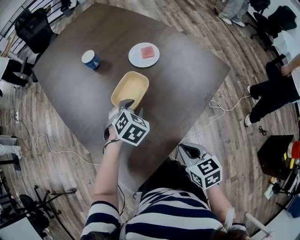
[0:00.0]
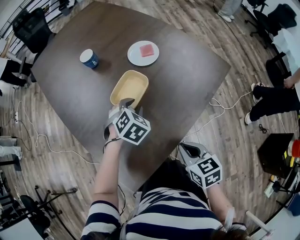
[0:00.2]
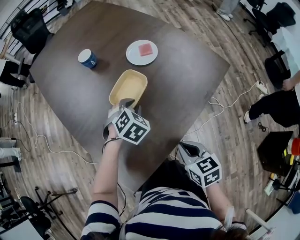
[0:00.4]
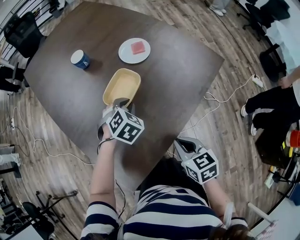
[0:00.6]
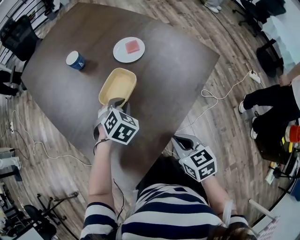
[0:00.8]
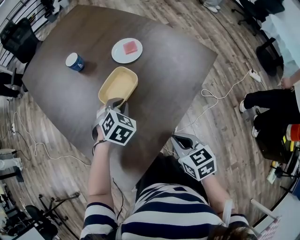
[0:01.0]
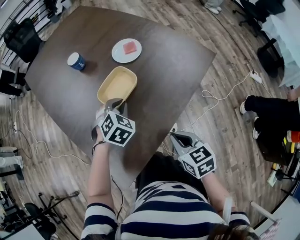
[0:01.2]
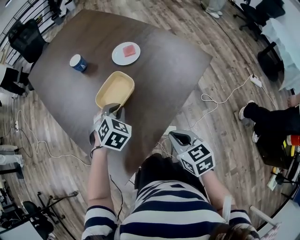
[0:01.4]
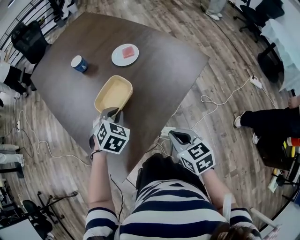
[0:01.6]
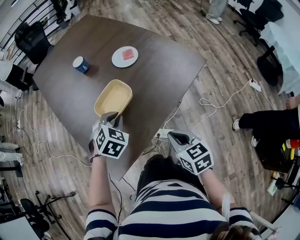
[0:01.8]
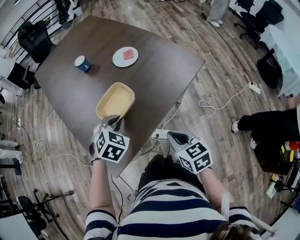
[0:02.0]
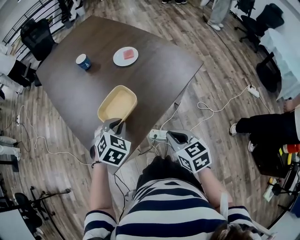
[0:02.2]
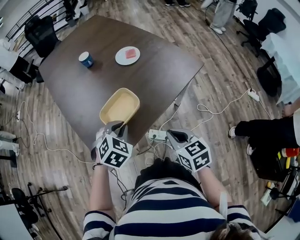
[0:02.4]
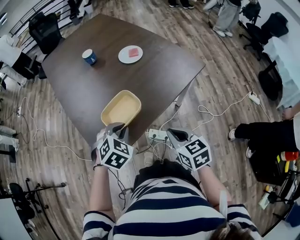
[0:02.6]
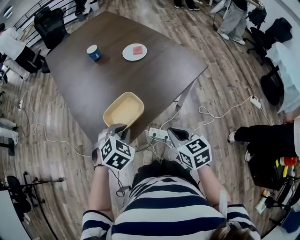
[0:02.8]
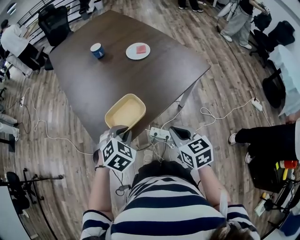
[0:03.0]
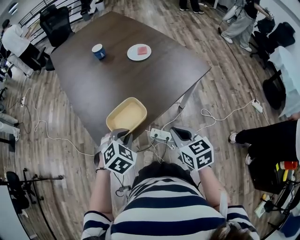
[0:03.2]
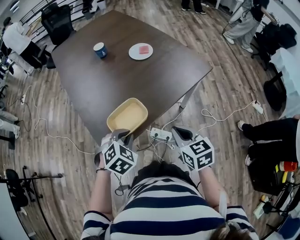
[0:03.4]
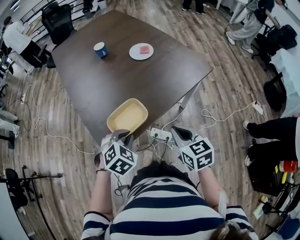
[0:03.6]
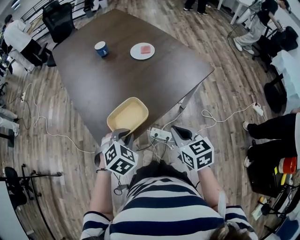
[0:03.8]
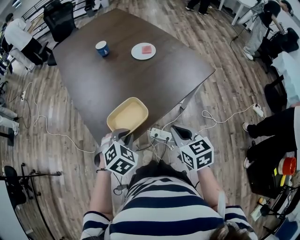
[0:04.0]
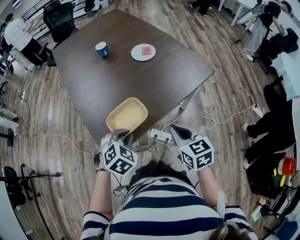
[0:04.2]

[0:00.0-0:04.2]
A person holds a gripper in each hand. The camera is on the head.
0:00.0 to 0:01.4: The left gripper changes place by approximately 5 cm.
0:01.4 to 0:02.8: The right gripper travels backward by some 10 cm. Meanwhile the left gripper heads backward, covering roughly 20 cm.
0:02.8 to 0:04.2: The grippers stay close to where they were, moving slightly.

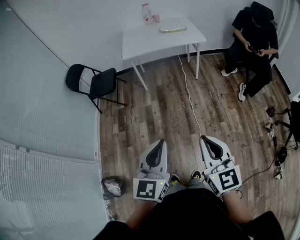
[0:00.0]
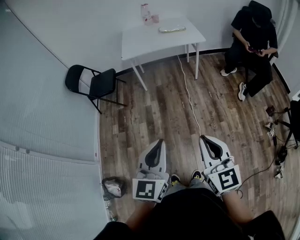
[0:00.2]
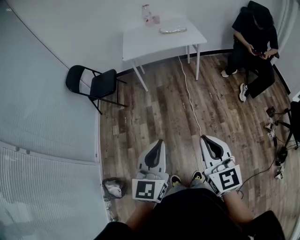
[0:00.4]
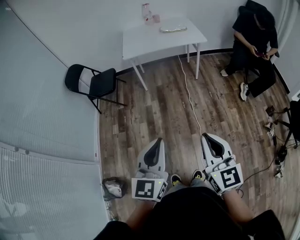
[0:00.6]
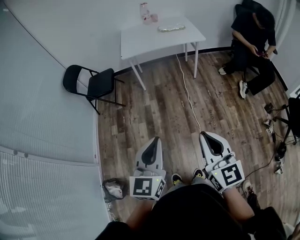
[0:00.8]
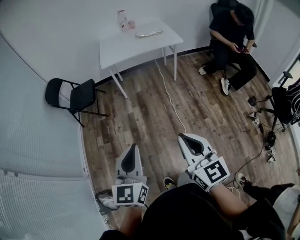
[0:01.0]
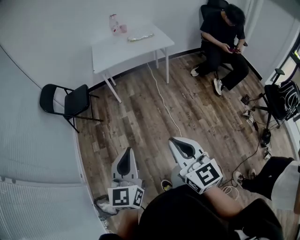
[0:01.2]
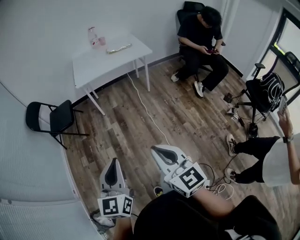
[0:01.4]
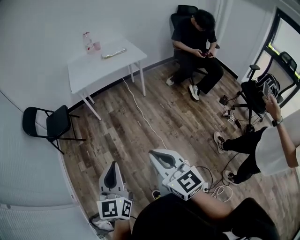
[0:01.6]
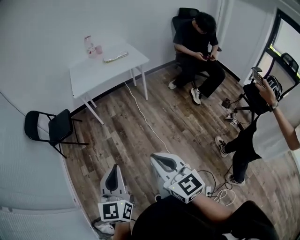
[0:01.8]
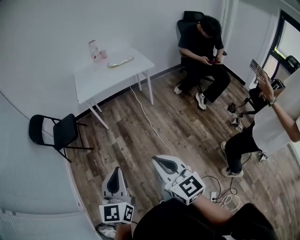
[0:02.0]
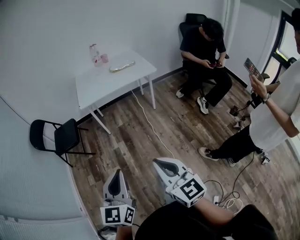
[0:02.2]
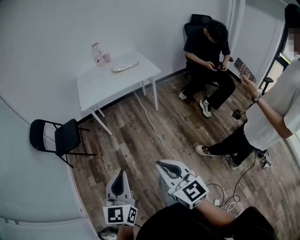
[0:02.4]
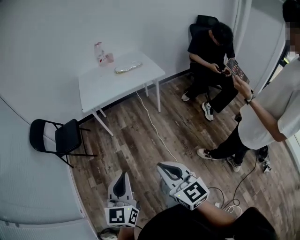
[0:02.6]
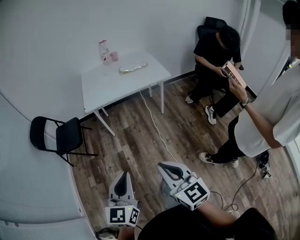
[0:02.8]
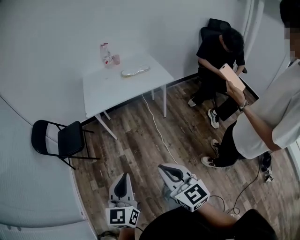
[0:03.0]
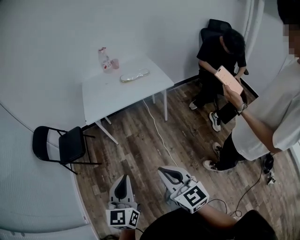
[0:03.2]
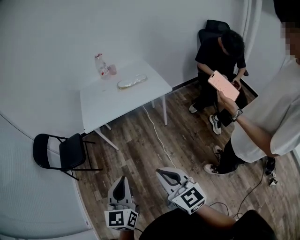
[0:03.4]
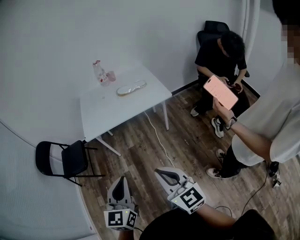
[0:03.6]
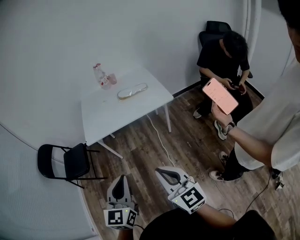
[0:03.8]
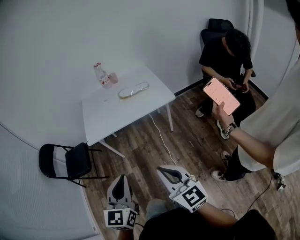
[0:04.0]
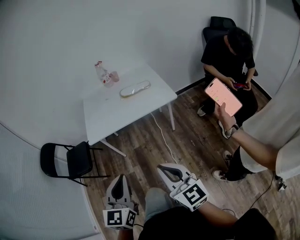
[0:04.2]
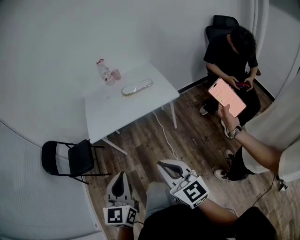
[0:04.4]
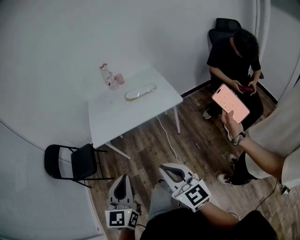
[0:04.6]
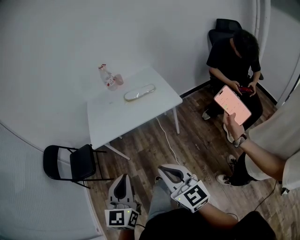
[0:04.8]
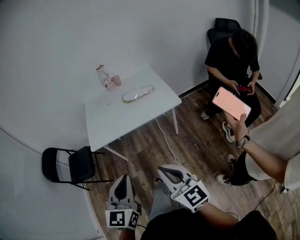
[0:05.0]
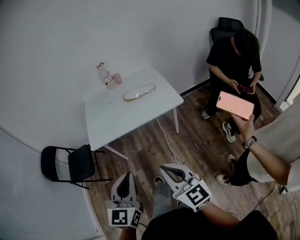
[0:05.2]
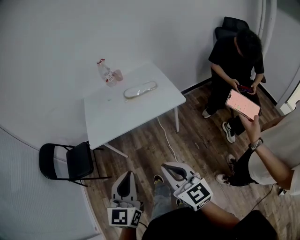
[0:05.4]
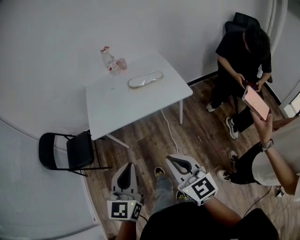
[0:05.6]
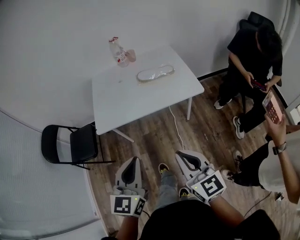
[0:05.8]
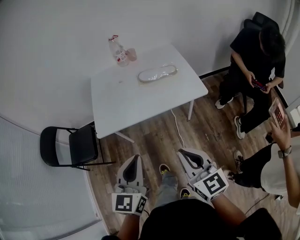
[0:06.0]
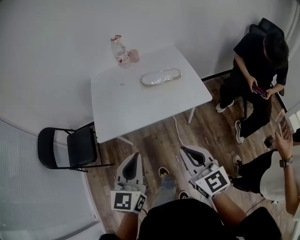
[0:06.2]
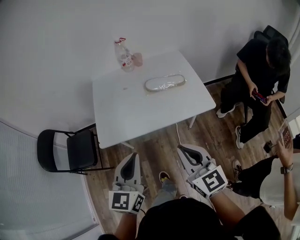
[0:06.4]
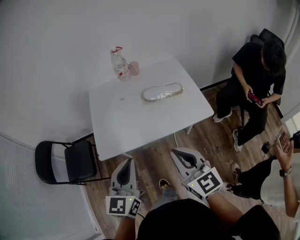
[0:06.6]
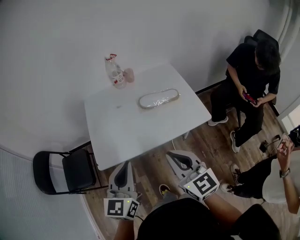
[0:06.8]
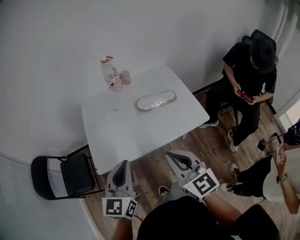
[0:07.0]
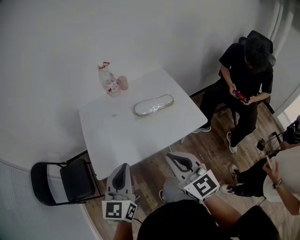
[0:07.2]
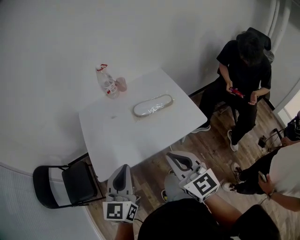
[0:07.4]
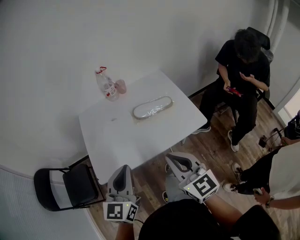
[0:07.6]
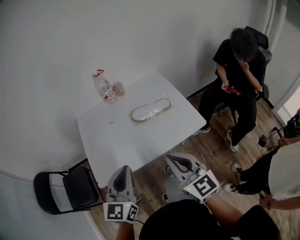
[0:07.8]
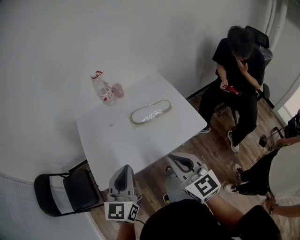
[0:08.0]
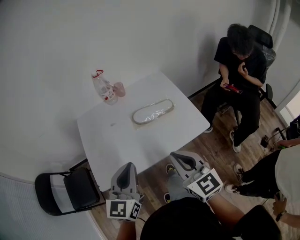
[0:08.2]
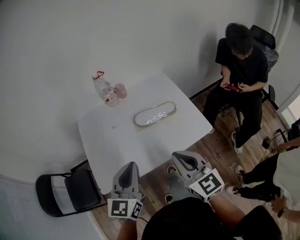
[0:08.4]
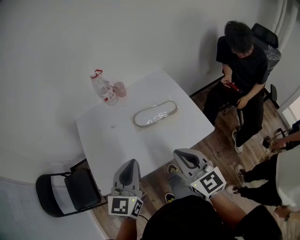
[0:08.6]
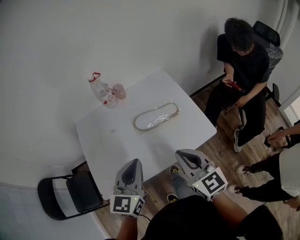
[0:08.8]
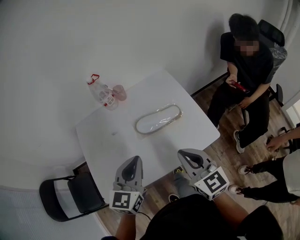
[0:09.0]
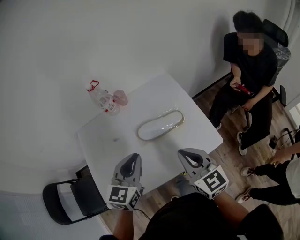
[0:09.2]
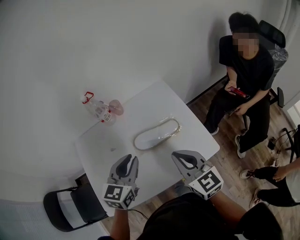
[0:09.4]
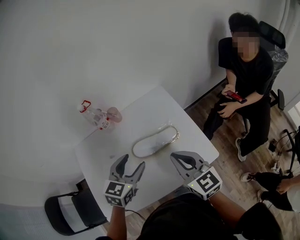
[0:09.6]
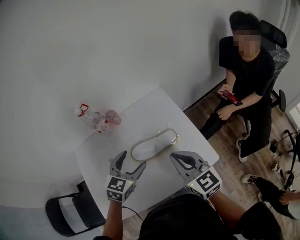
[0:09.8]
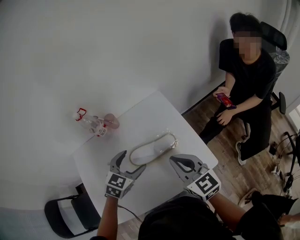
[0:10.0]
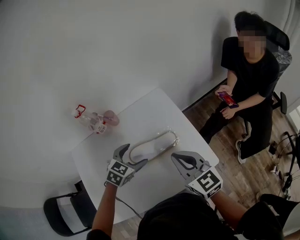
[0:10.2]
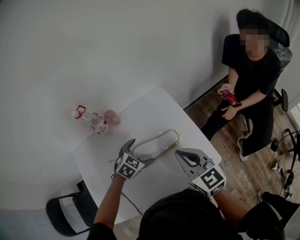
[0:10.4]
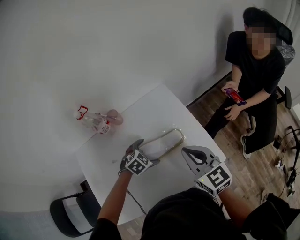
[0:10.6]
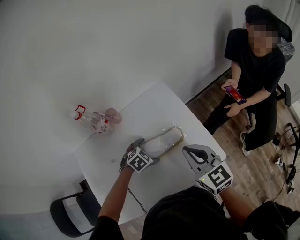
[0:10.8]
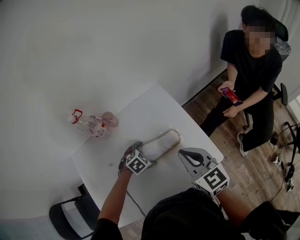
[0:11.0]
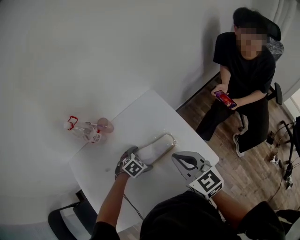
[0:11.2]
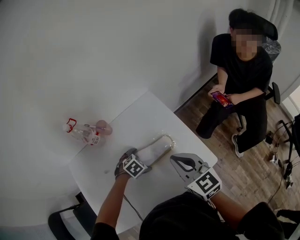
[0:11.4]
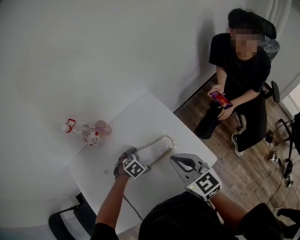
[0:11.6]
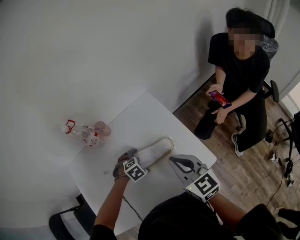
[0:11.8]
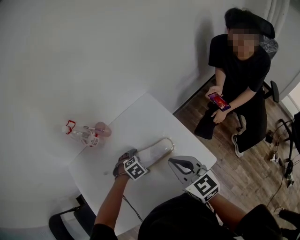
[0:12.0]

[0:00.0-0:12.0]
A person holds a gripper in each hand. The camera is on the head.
0:00.0 to 0:01.6: Both grippers travel together to the left, approximately 10 cm.
0:01.6 to 0:03.0: Both grippers move forward, about 25 cm.
0:03.0 to 0:04.4: The two grippers go some 20 cm forward and to the right.
0:04.4 to 0:06.0: Both grippers move forward, about 20 cm.
0:06.0 to 0:07.6: The two grippers go about 20 cm forward.
0:07.6 to 0:09.0: The grippers both shift forward by some 20 cm.
0:09.0 to 0:10.4: The right gripper goes some 15 cm forward, while the left gripper shifts roughly 30 cm forward and downward, angles its fingers downward, by some 40 degrees, and opens its fingers.
0:10.4 to 0:12.0: The left gripper is displaced downward by some 10 cm, and swivels approximately 30 degrees.

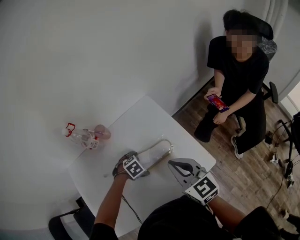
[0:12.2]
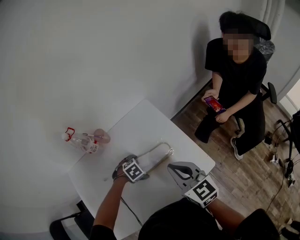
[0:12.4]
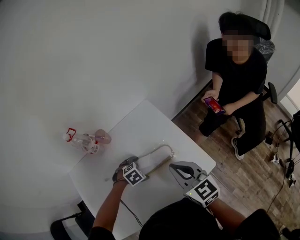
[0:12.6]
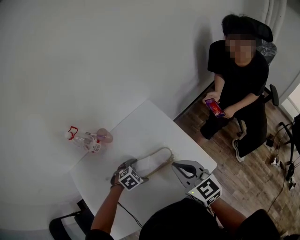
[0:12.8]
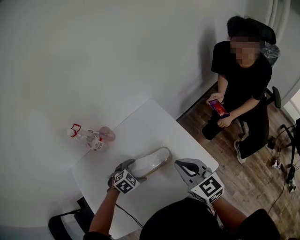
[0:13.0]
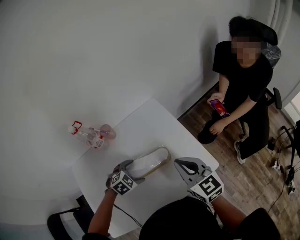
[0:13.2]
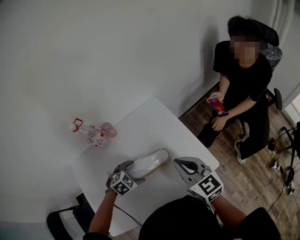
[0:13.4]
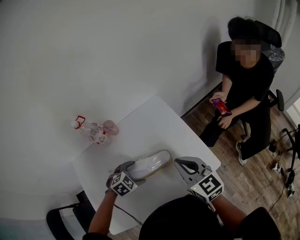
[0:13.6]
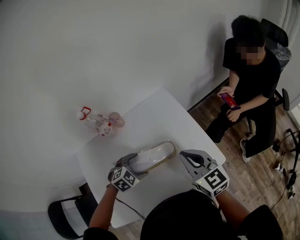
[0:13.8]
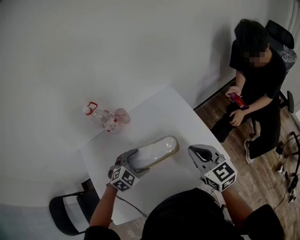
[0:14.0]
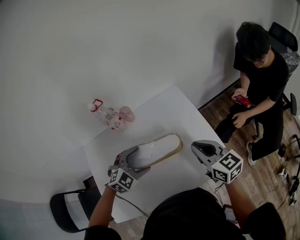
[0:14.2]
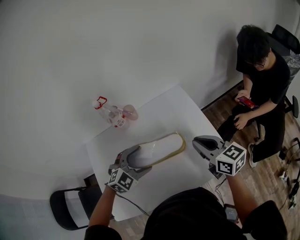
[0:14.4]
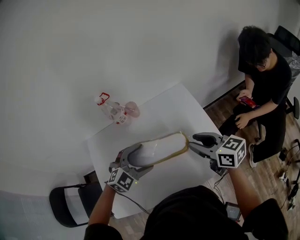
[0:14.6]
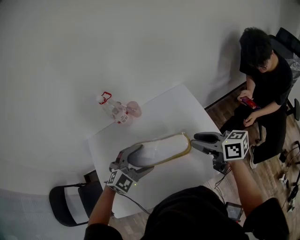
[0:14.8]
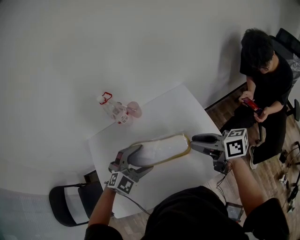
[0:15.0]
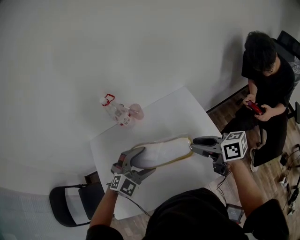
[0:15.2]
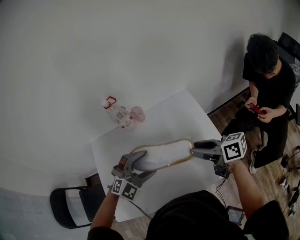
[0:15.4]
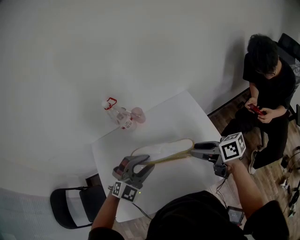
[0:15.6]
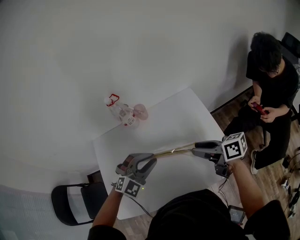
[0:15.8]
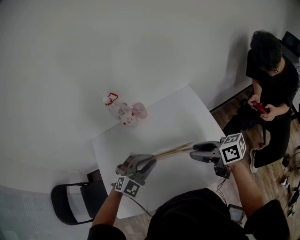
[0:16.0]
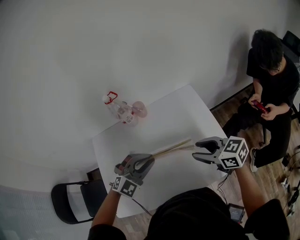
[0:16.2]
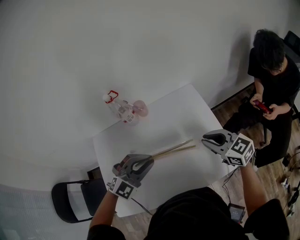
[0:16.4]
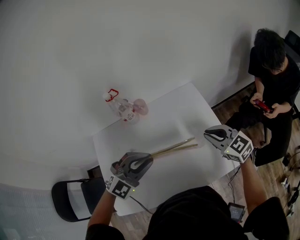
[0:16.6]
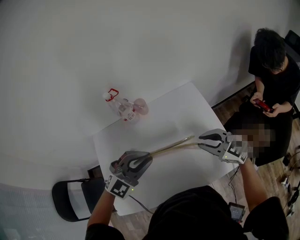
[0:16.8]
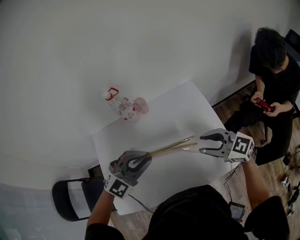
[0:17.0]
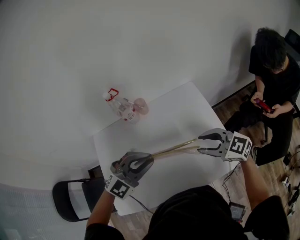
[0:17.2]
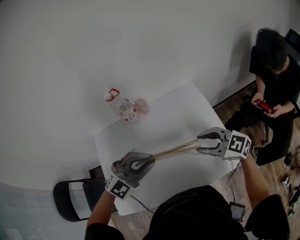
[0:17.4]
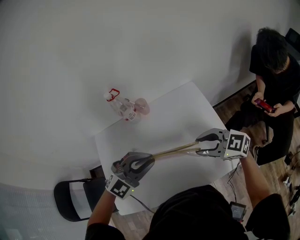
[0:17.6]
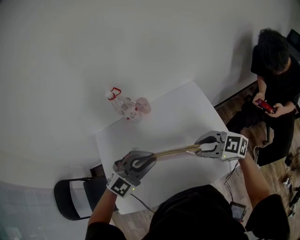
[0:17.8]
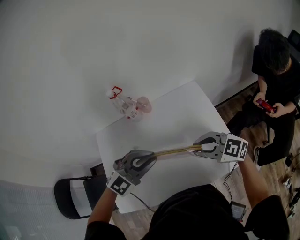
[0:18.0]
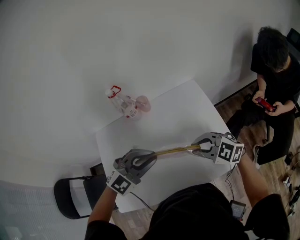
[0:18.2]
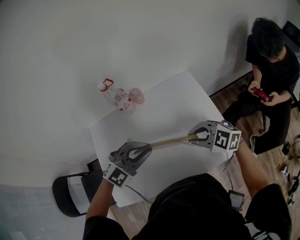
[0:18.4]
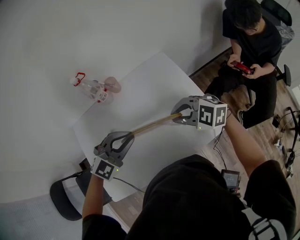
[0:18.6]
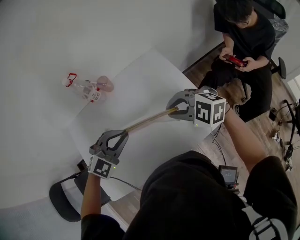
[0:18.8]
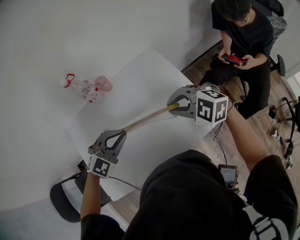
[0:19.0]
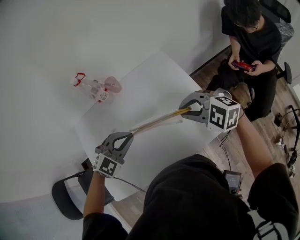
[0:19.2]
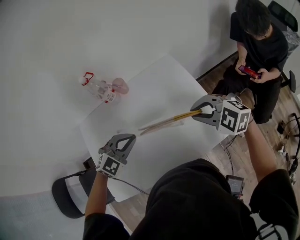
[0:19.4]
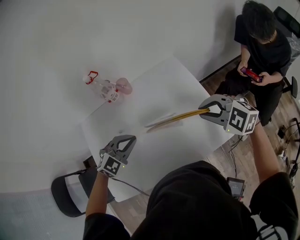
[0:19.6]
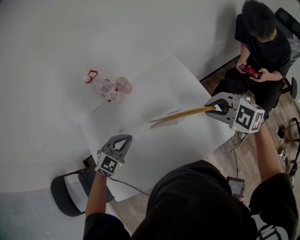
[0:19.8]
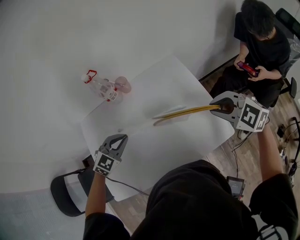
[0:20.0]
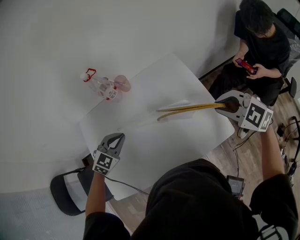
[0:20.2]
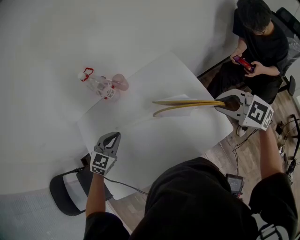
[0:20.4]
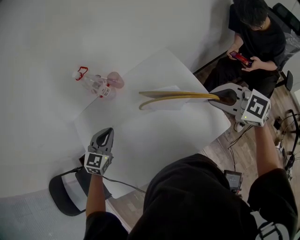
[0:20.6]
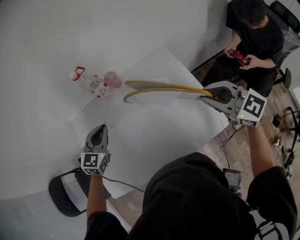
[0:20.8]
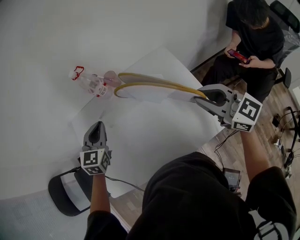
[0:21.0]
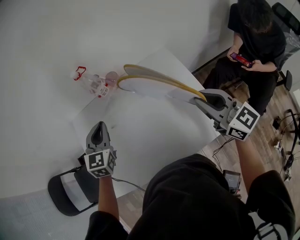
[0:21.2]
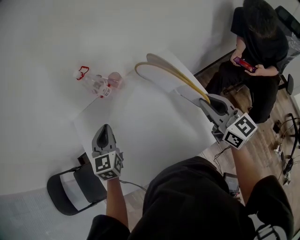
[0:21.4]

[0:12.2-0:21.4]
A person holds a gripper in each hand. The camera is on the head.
0:12.2 to 0:13.8: The left gripper travels upward by about 10 cm, and rotates some 20 degrees.
0:13.8 to 0:15.2: The left gripper goes roughly 15 cm upward, and turns by about 30 degrees; the right gripper rotates approximately 40 degrees, and opens up.
0:15.2 to 0:16.8: The left gripper heads upward, covering roughly 5 cm, and closes up. Meanwhile the right gripper rolls counterclockwise, seen from behind, by some 50 degrees.
0:16.8 to 0:18.4: The right gripper shifts by roughly 5 cm, changes its angle by approximately 20 degrees, and opens, then closes once more.
0:18.4 to 0:19.8: The left gripper shifts about 10 cm downward; the right gripper moves about 10 cm.
0:19.8 to 0:21.4: The right gripper angles its fingers upward, by roughly 40 degrees. Meanwhile the left gripper goes approximately 10 cm upward and forward, and swivels approximately 50 degrees.
